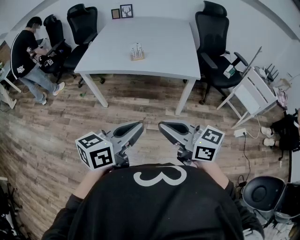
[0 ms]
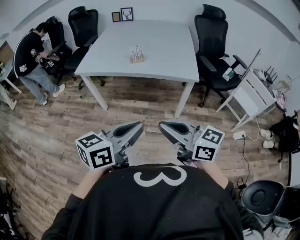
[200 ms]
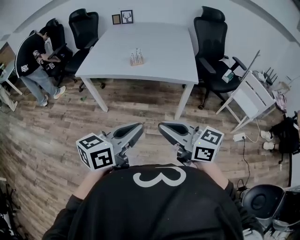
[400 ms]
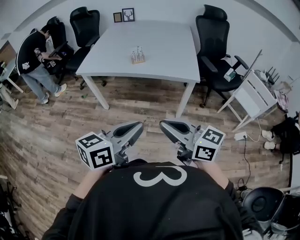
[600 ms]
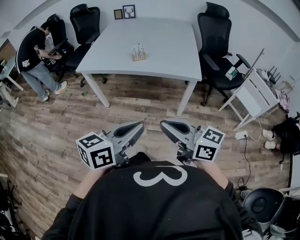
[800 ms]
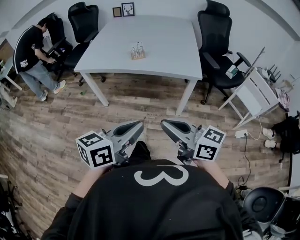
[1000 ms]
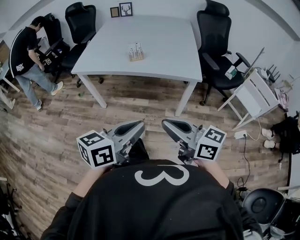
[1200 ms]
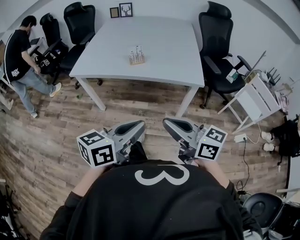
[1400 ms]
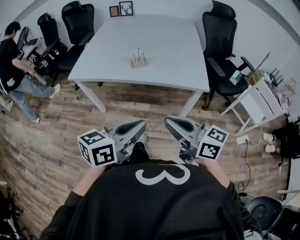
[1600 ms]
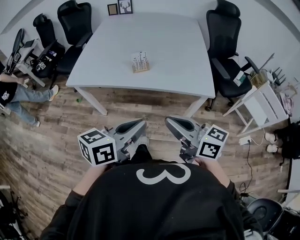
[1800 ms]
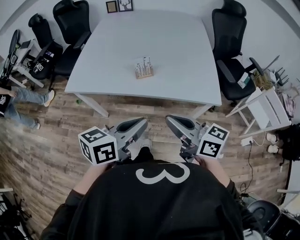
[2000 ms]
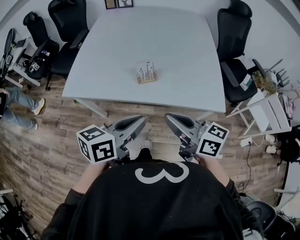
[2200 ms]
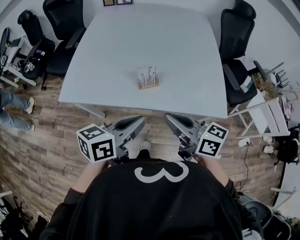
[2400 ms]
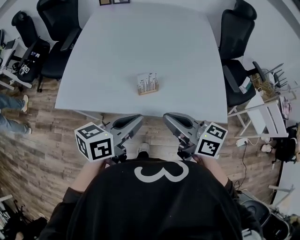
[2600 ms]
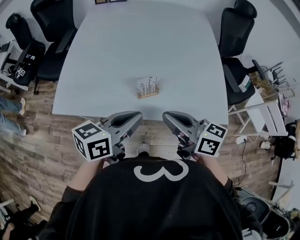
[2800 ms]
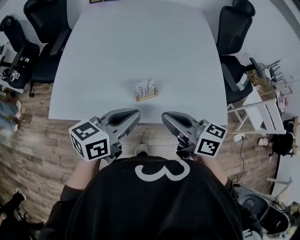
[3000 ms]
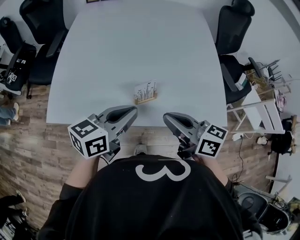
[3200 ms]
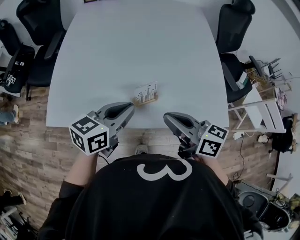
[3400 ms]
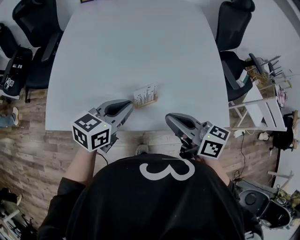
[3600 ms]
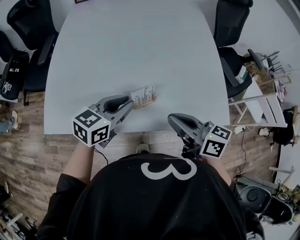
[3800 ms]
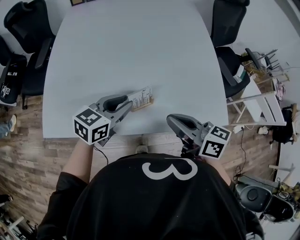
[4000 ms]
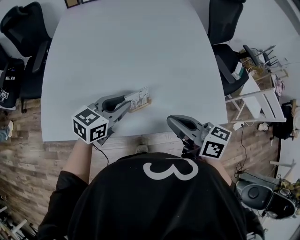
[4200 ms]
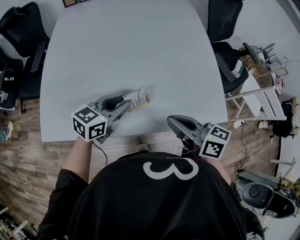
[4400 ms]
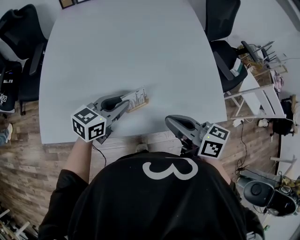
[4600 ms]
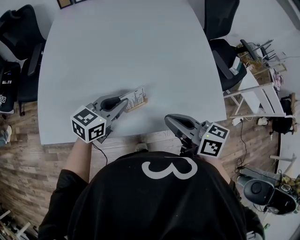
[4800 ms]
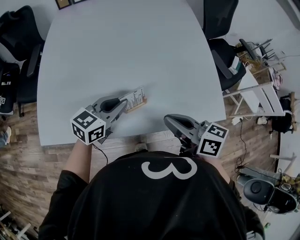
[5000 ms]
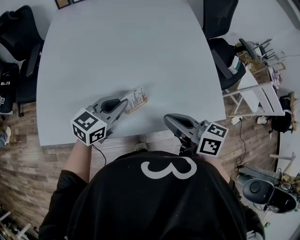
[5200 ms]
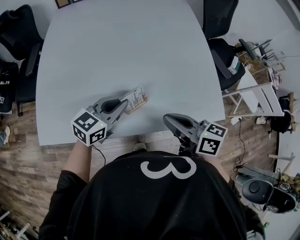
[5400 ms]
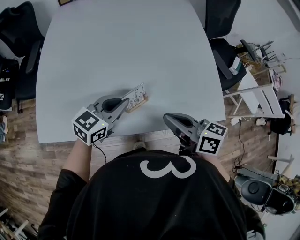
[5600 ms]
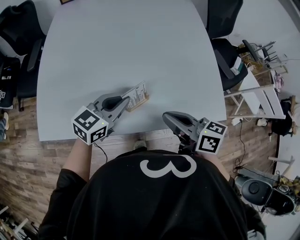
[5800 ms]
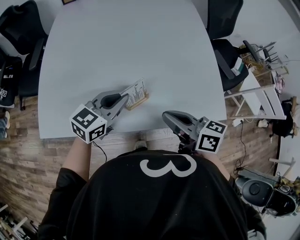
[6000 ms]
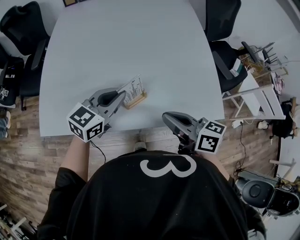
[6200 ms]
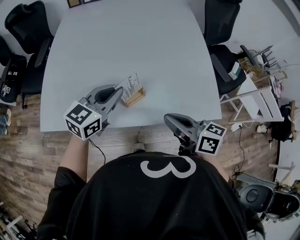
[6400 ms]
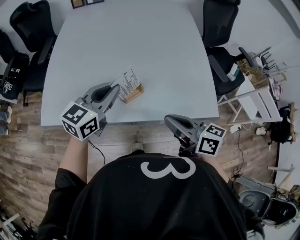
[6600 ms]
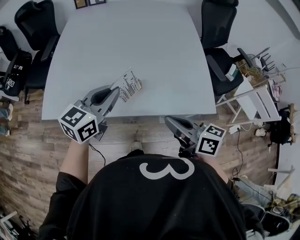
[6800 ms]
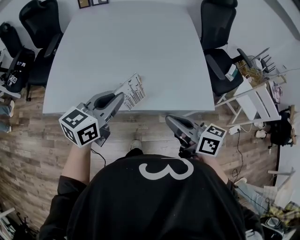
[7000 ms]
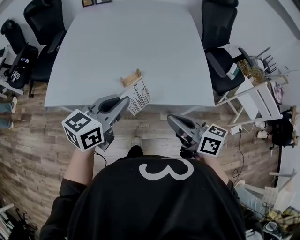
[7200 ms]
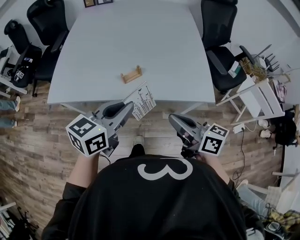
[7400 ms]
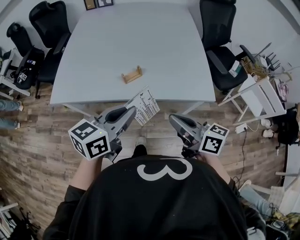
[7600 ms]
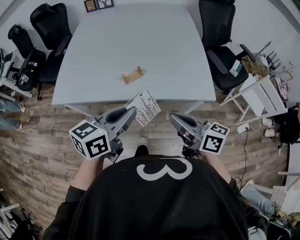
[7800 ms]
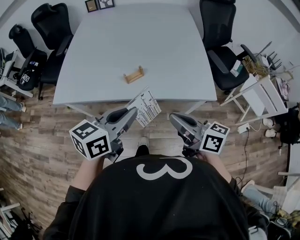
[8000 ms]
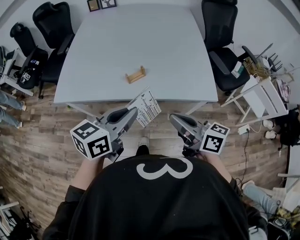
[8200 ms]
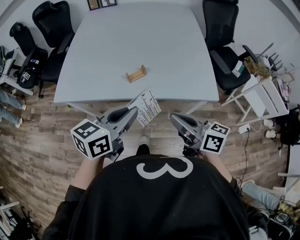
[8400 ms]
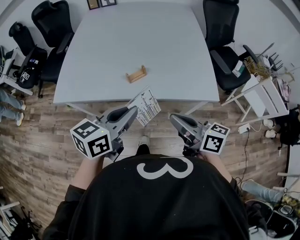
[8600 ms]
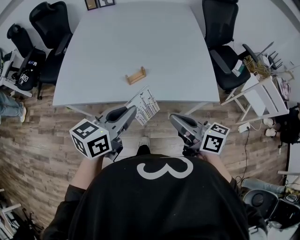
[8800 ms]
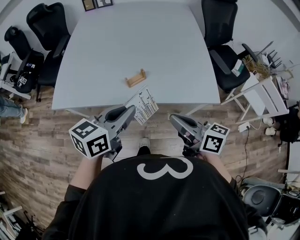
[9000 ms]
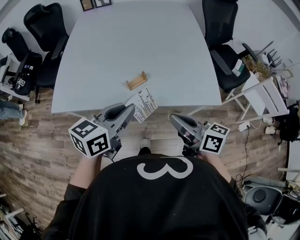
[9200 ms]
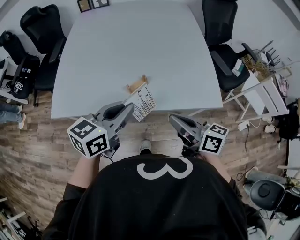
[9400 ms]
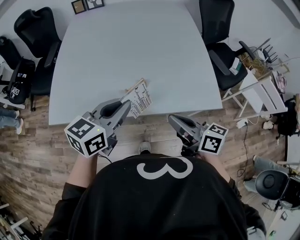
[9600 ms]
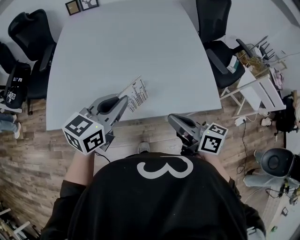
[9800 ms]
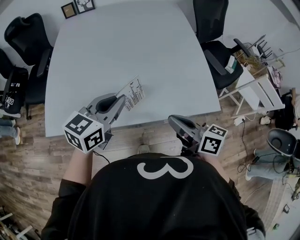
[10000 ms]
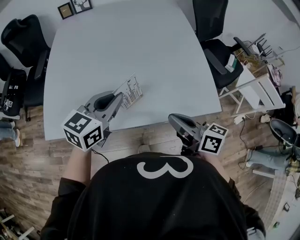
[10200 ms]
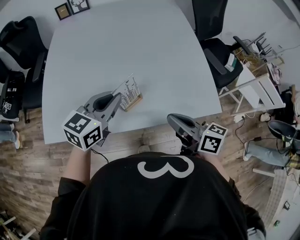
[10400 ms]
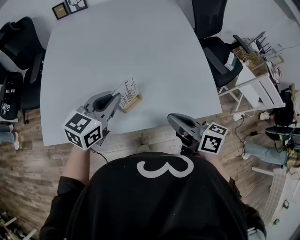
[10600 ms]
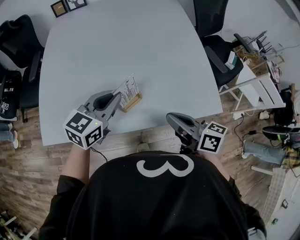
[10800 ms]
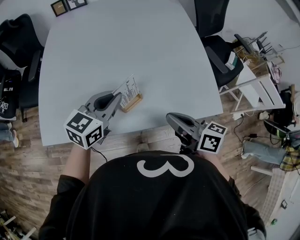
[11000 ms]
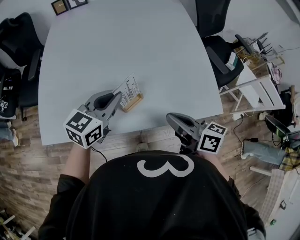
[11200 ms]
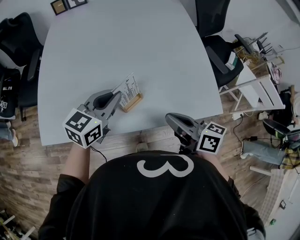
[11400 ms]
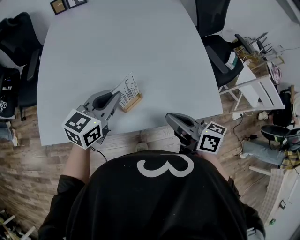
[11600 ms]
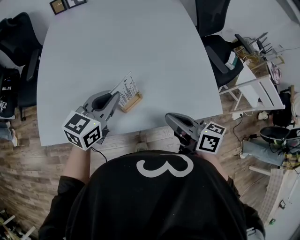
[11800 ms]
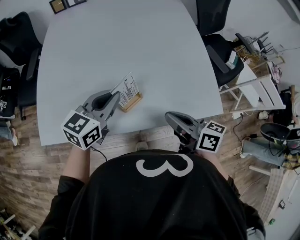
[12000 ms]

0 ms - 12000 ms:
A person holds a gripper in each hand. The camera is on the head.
0 ms - 1600 ms: The two grippers go some 15 cm forward.
1600 ms - 3000 ms: The grippers both shift forward by about 35 cm.
3000 ms - 4400 ms: The left gripper goes approximately 15 cm forward and downward. The right gripper ends up about 5 cm from where it was.
4400 ms - 6000 ms: The grippers stay close to where they were, moving slightly.
6000 ms - 7600 ms: The left gripper shifts roughly 25 cm backward and upward. The right gripper travels backward by approximately 20 cm.
7600 ms - 9000 ms: The grippers stay close to where they were, moving slightly.
9000 ms - 10400 ms: The right gripper goes some 10 cm forward, while the left gripper shifts some 20 cm forward.
10400 ms - 12000 ms: There are only small adjustments of the grippers.

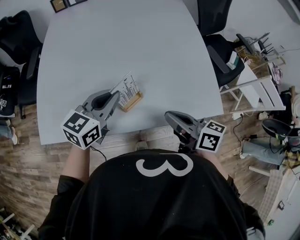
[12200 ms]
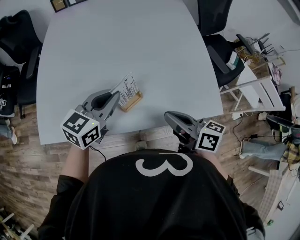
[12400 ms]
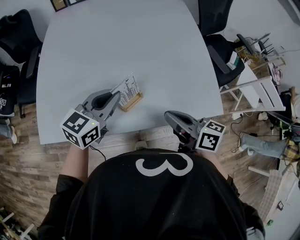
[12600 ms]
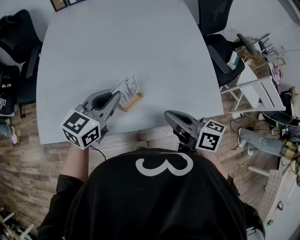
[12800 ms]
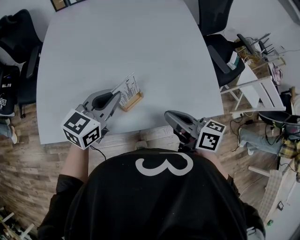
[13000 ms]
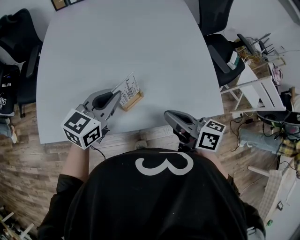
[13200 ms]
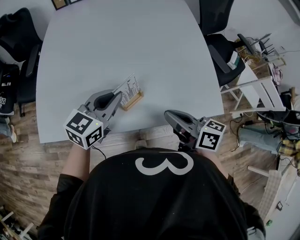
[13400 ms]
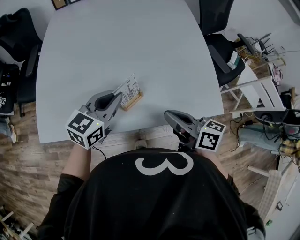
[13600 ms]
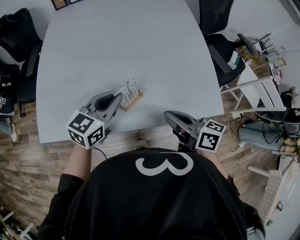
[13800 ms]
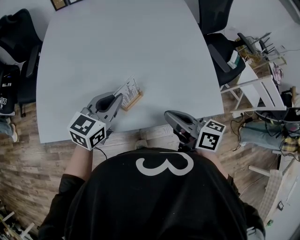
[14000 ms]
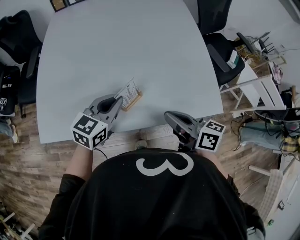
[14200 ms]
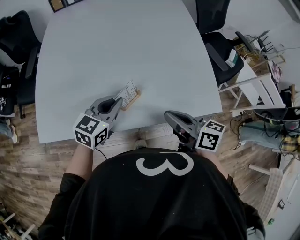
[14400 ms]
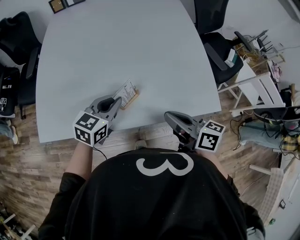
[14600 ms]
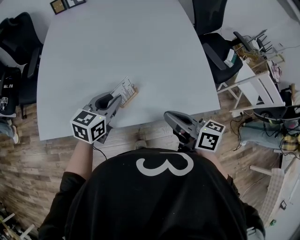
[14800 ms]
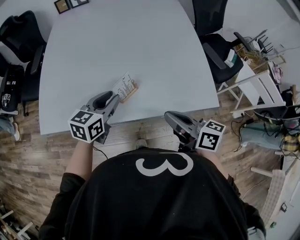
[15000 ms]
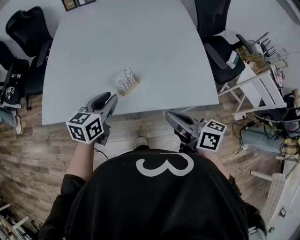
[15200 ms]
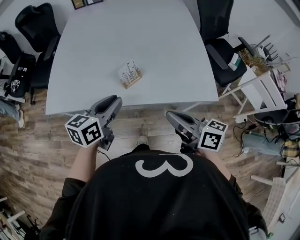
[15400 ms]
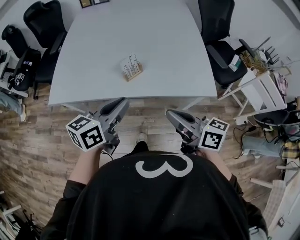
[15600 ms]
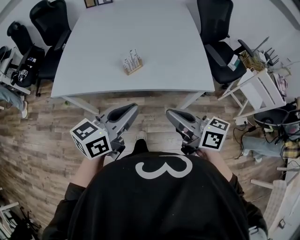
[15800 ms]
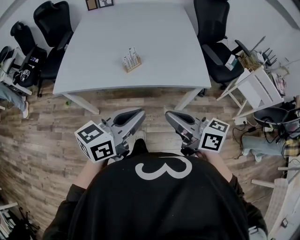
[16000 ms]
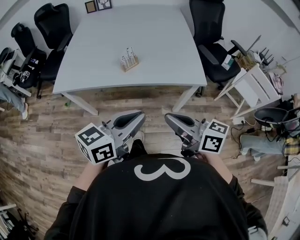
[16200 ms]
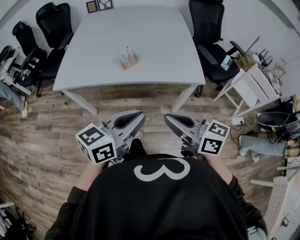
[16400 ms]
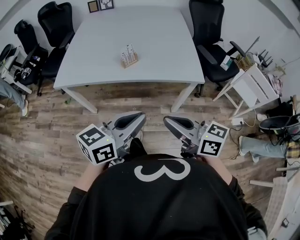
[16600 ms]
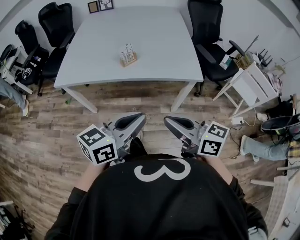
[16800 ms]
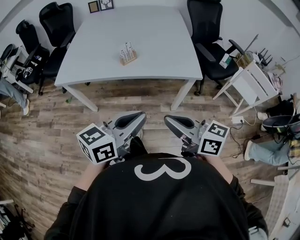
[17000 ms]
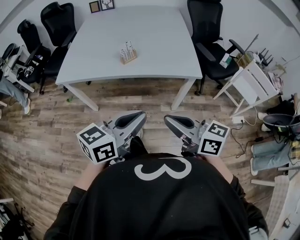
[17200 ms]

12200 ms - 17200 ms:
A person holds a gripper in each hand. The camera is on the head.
12200 ms - 13800 ms: The grippers move only a little.
13800 ms - 15600 ms: Both grippers move backward, about 15 cm. The left gripper turns by approximately 20 degrees.
15600 ms - 17200 ms: The right gripper is displaced backward by about 20 cm. Meanwhile the left gripper travels backward and to the right by approximately 25 cm.

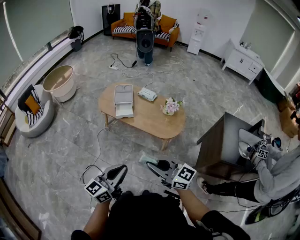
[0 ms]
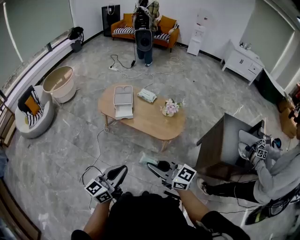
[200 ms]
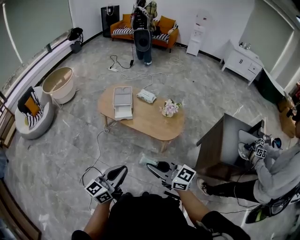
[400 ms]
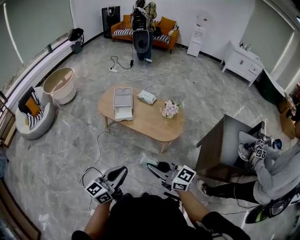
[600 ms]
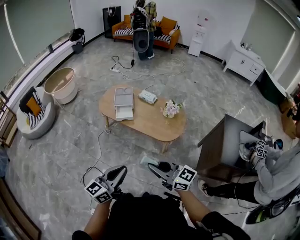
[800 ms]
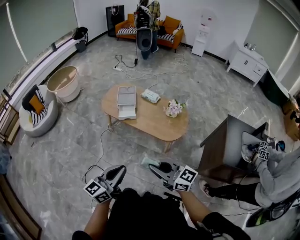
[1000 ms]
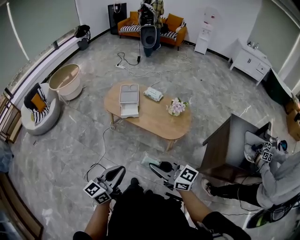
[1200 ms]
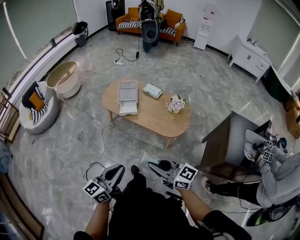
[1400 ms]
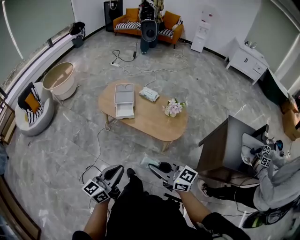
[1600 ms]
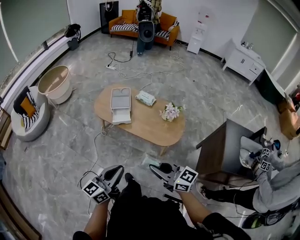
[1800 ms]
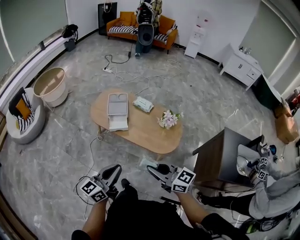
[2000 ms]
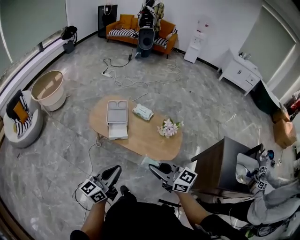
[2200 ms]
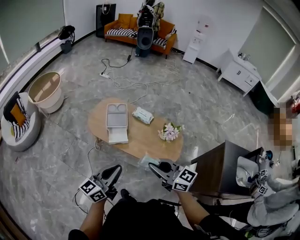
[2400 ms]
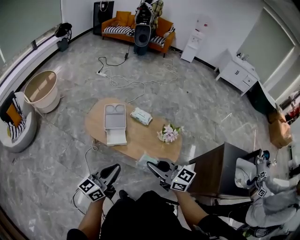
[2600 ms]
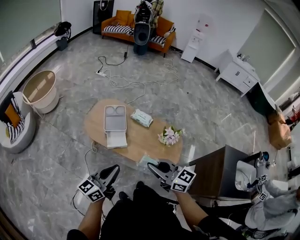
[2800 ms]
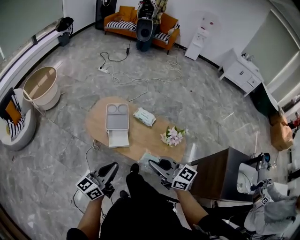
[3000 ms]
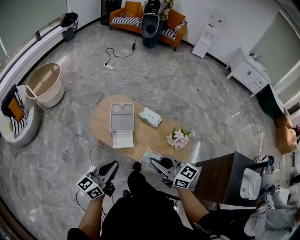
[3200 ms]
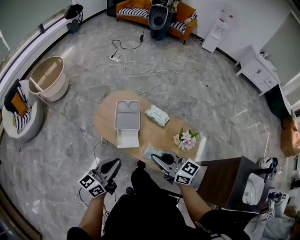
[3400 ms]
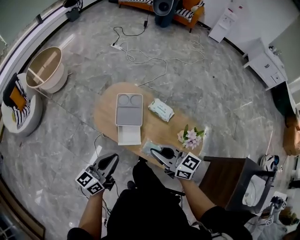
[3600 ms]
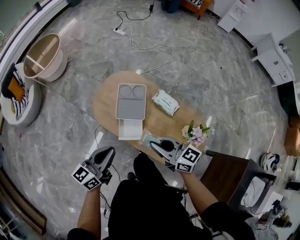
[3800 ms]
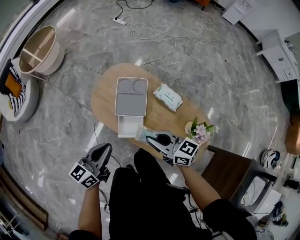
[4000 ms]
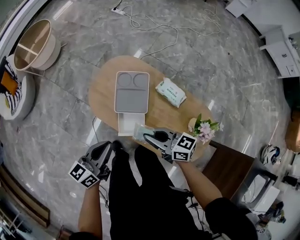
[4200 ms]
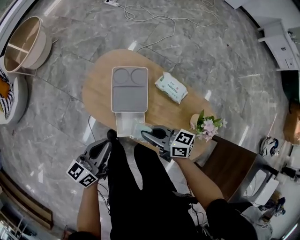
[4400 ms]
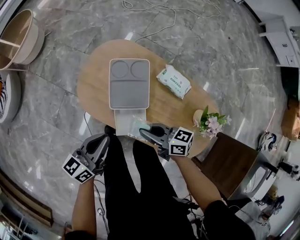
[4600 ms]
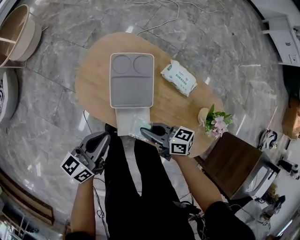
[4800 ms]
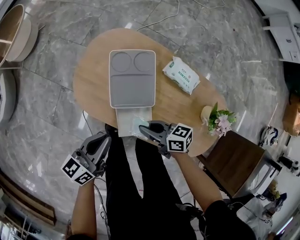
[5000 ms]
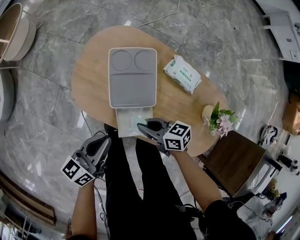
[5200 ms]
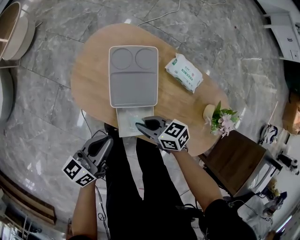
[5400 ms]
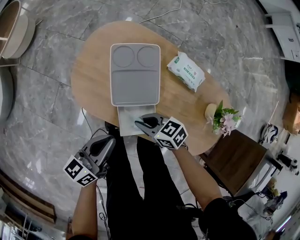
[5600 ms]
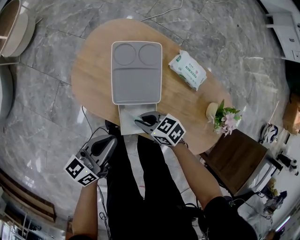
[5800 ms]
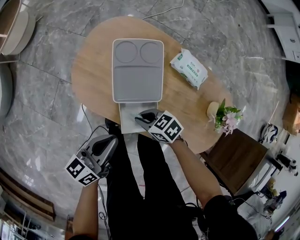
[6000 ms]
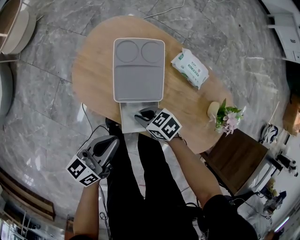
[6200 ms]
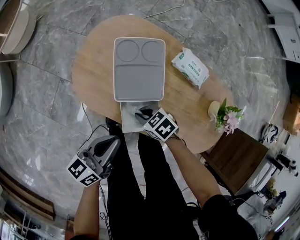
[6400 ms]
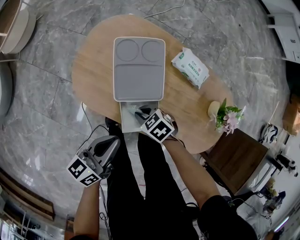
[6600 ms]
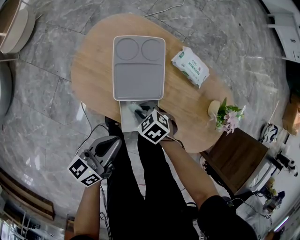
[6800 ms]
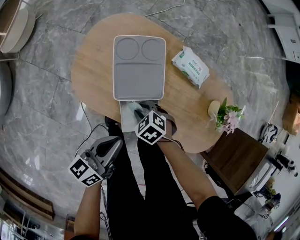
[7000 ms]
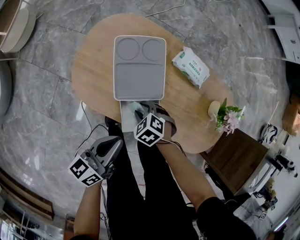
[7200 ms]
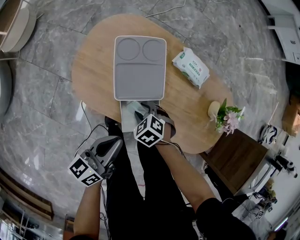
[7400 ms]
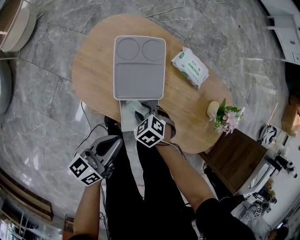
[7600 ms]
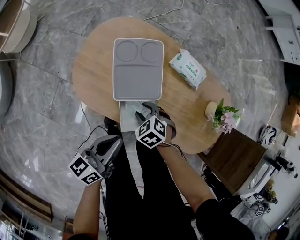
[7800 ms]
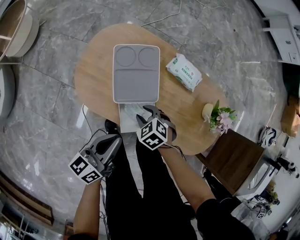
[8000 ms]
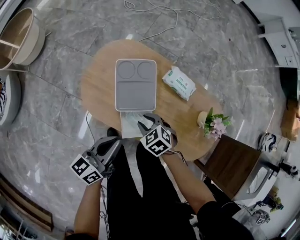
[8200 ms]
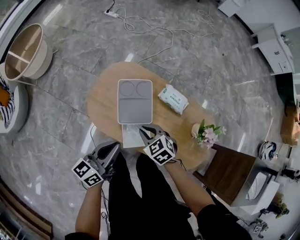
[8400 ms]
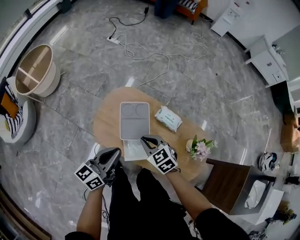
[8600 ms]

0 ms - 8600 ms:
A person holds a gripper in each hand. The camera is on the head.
0 ms - 1400 ms: There are only small adjustments of the grippers.
1400 ms - 2800 ms: Both grippers move forward, approximately 35 cm.
2800 ms - 4400 ms: The grippers both shift forward and downward by about 40 cm. The right gripper turns by some 40 degrees. Meanwhile the left gripper turns by about 20 degrees.
4400 ms - 5800 ms: The right gripper moves downward, approximately 20 cm, and changes its angle by about 30 degrees; the left gripper shifts some 15 cm downward.
5800 ms - 7200 ms: The right gripper moves downward, approximately 5 cm, angles its fingers downward, by roughly 30 degrees, and opens up.
7200 ms - 8600 ms: The two grippers go some 30 cm upward. The right gripper changes its angle by roughly 30 degrees, and closes up.
